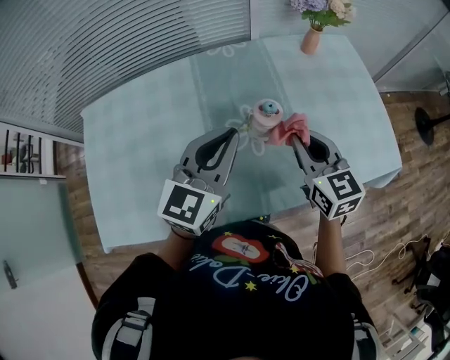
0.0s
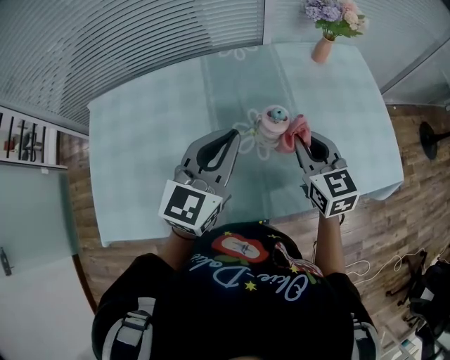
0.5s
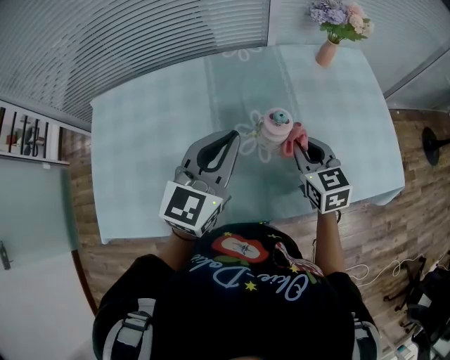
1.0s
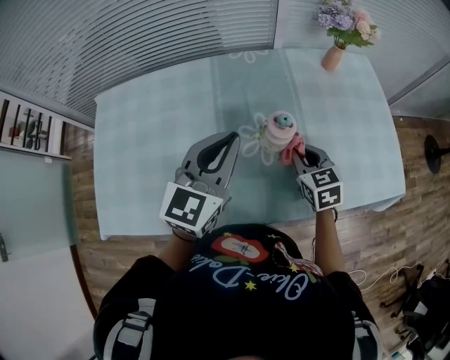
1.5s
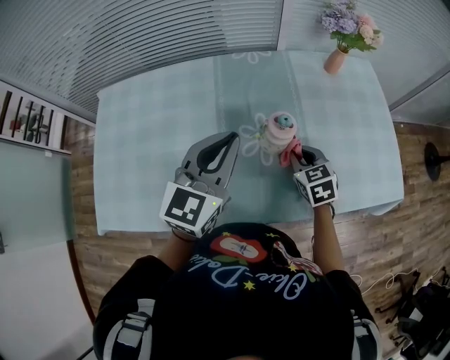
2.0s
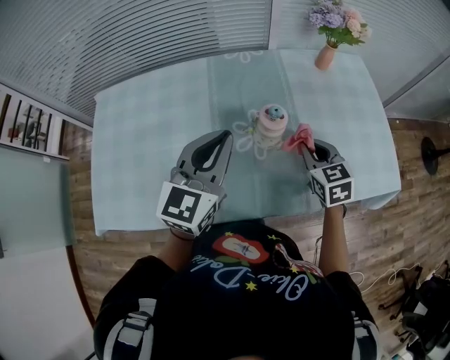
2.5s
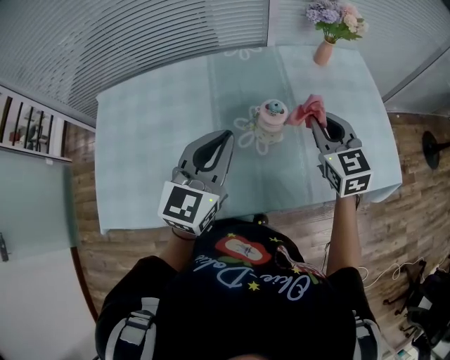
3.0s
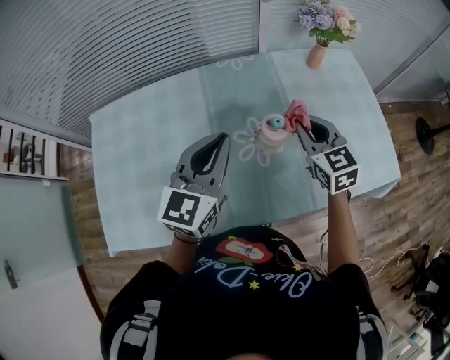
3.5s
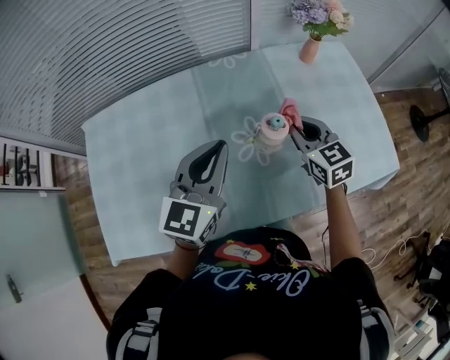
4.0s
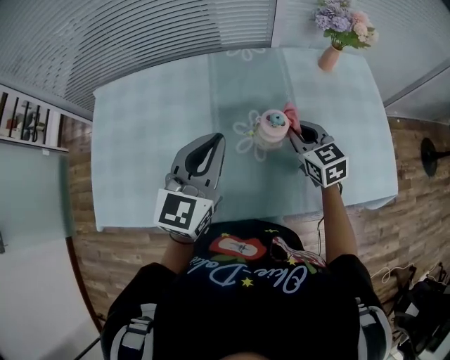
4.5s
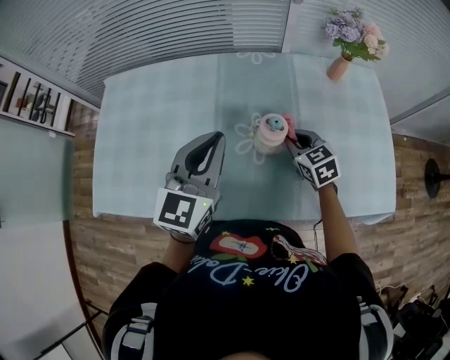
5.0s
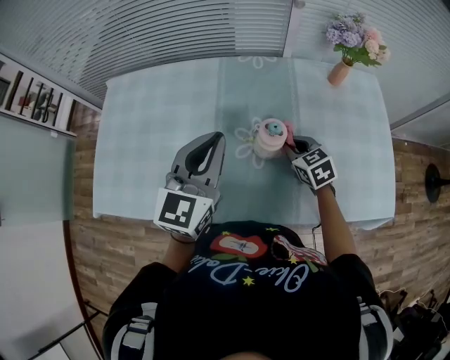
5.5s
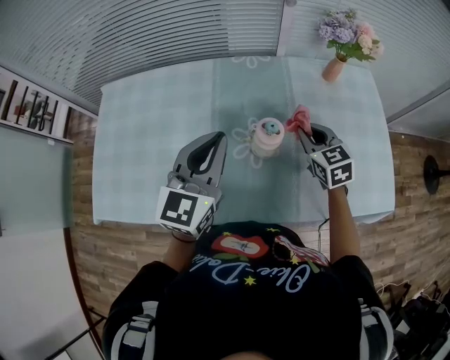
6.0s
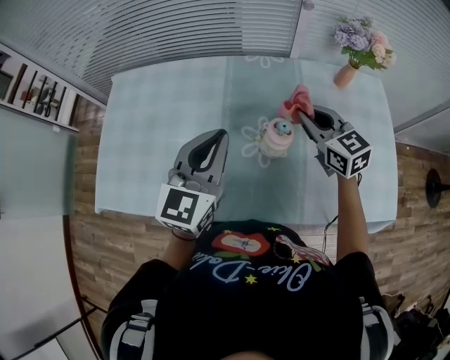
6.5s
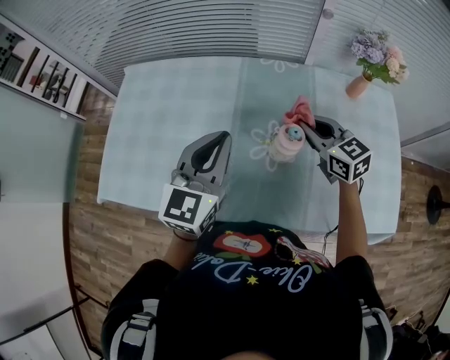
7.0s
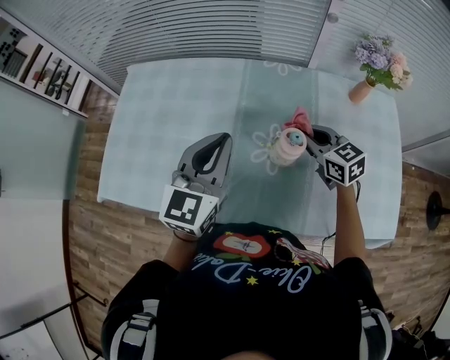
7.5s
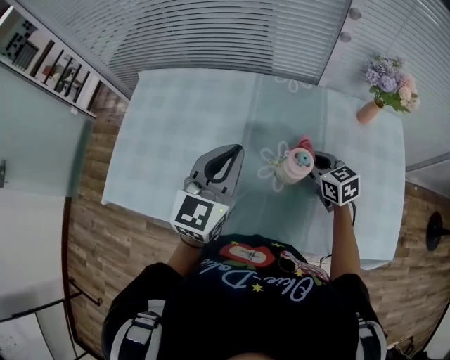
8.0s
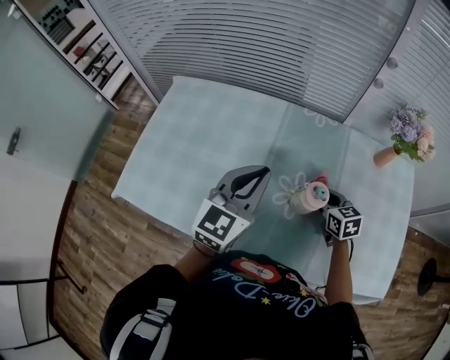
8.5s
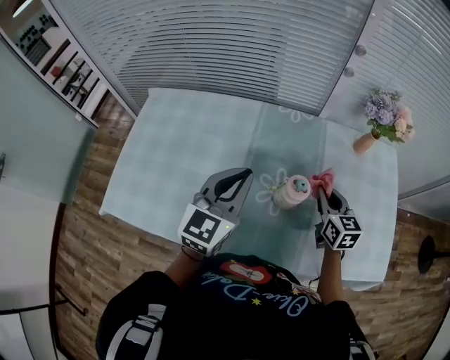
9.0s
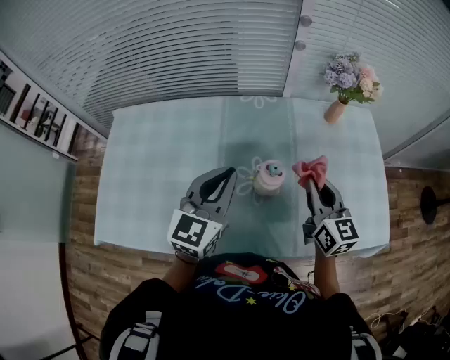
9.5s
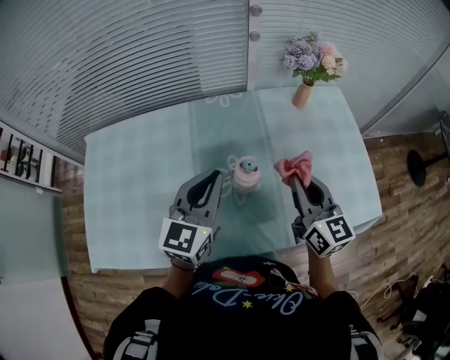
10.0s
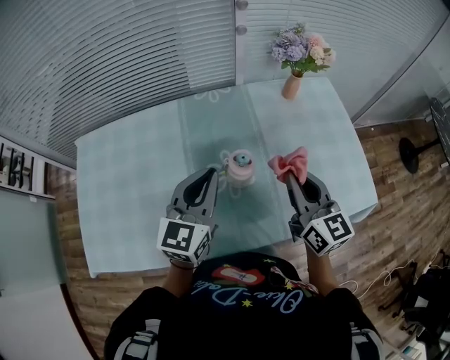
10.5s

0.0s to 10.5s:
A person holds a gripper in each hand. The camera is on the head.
0.0s to 2.0s: The right gripper goes approximately 15 cm downward, and changes its angle by about 30 degrees.
2.0s to 4.0s: The right gripper is displaced upward by some 10 cm.
4.0s to 6.5s: The right gripper goes downward and returns, approximately 10 cm each way, and changes its angle by approximately 20 degrees.
6.5s to 8.5s: The right gripper shifts roughly 15 cm downward.
8.5s to 10.5s: The right gripper is displaced upward, backward and to the right by approximately 20 cm, and tilts its fingers some 30 degrees upward, while the left gripper moves to the right, about 5 cm.

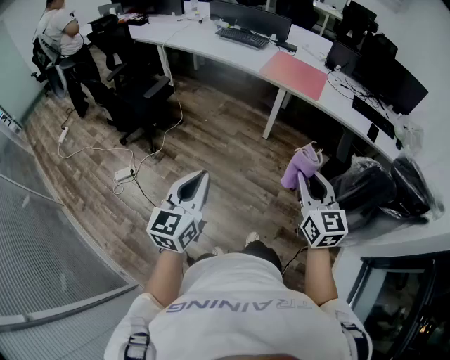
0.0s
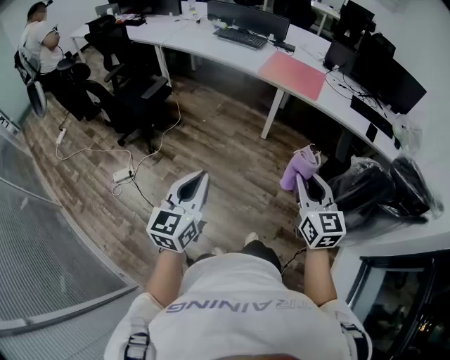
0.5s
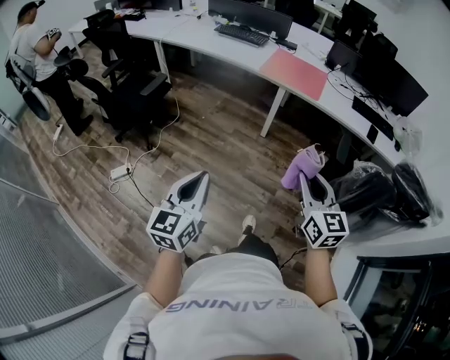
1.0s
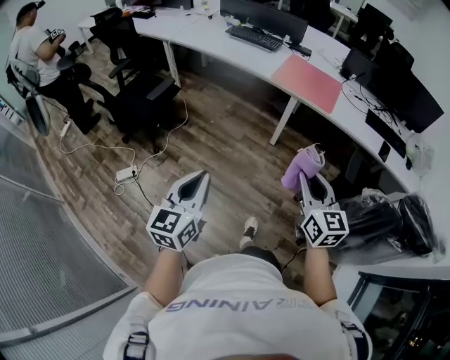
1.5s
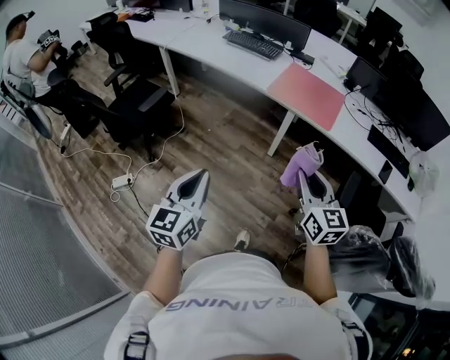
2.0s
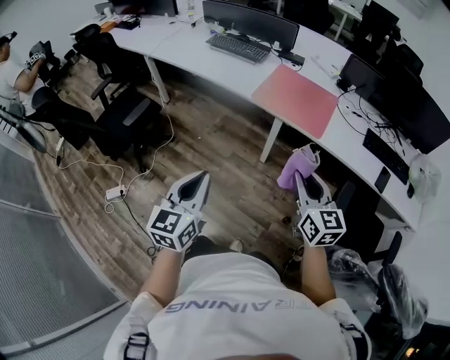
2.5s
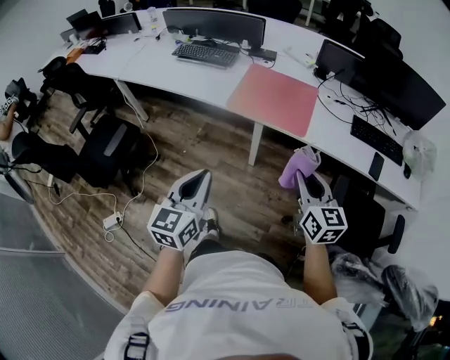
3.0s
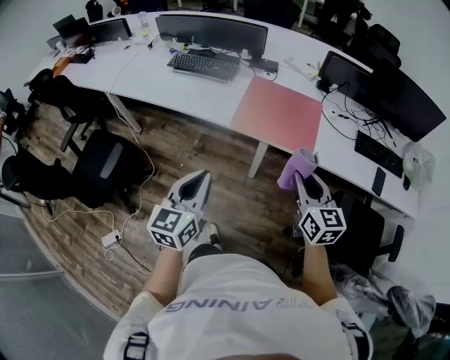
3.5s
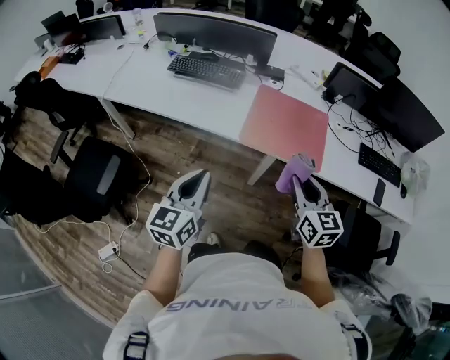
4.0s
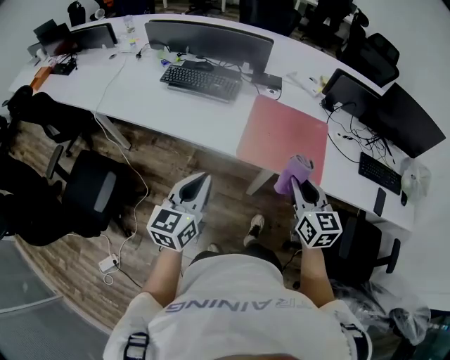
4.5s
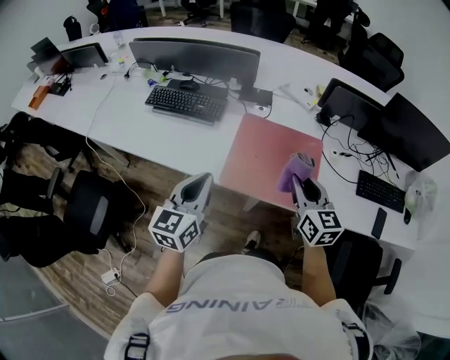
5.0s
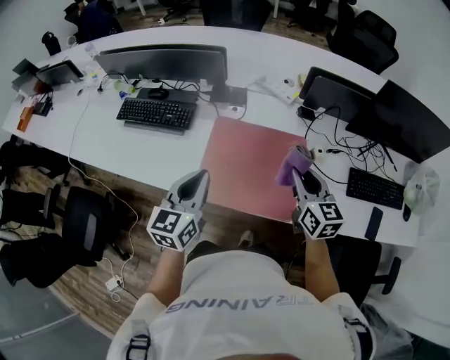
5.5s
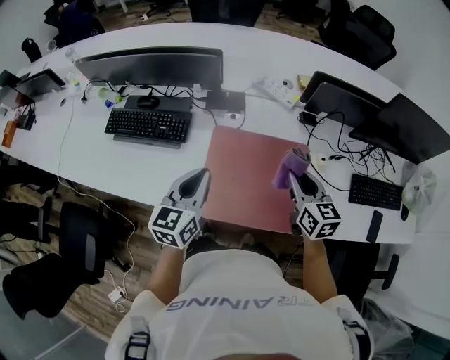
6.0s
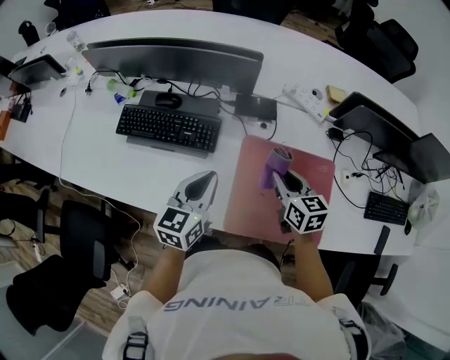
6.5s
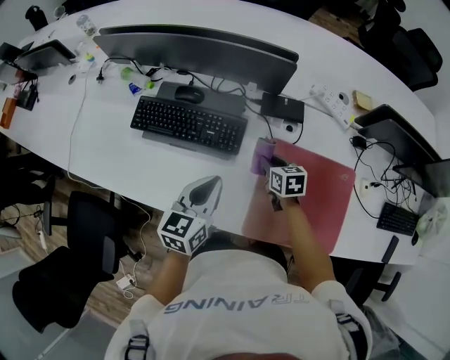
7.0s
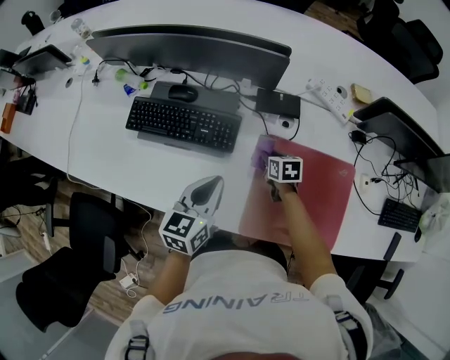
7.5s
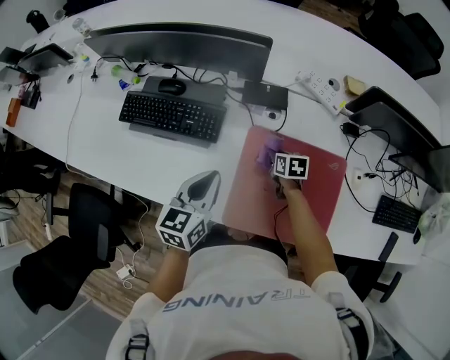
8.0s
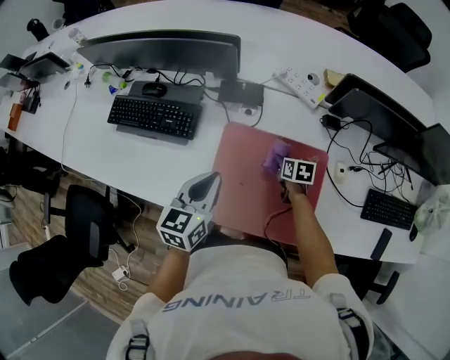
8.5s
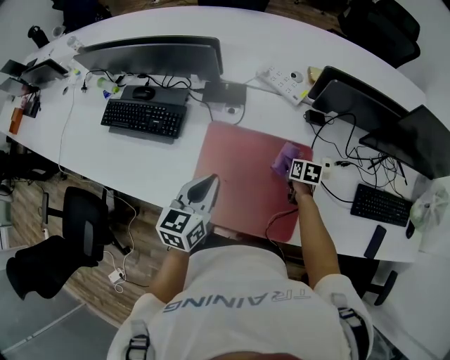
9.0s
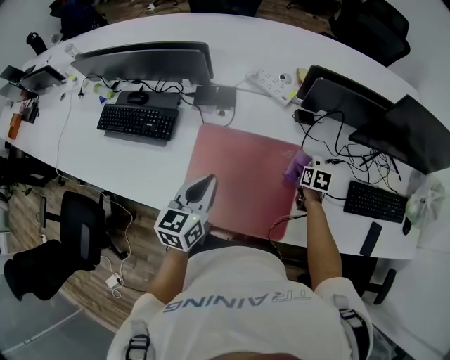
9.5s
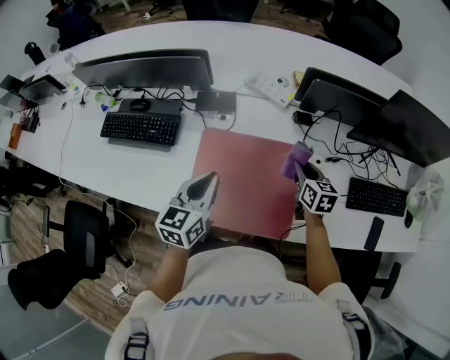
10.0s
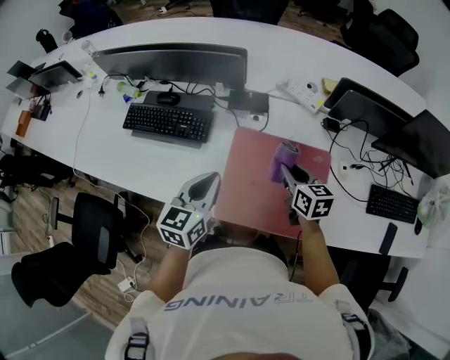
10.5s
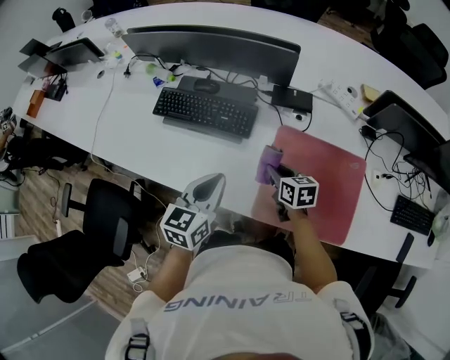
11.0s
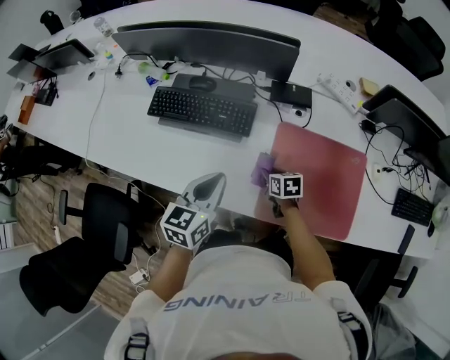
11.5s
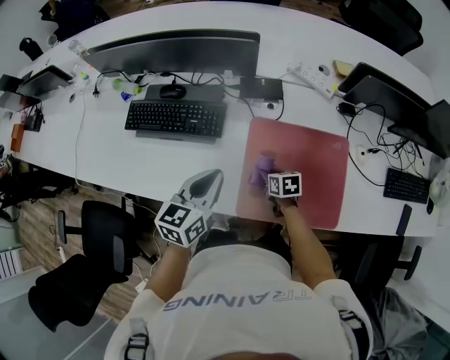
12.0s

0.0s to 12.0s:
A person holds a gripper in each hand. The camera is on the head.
0.0s to 2.0s: The two grippers go approximately 25 cm forward.
2.0s to 4.0s: Both grippers travel together forward, some 40 cm.
4.0s to 6.0s: Both grippers move forward, some 40 cm.
6.0s to 8.0s: The right gripper shifts roughly 35 cm downward, forward and to the left, and angles its fingers downward, by approximately 30 degrees, while the left gripper moves to the left, forward and downward, about 15 cm.
8.0s to 10.0s: The right gripper shifts roughly 30 cm to the right and upward, and changes its angle by approximately 30 degrees; the left gripper is displaced to the right by roughly 20 cm.
10.0s to 12.0s: The left gripper goes roughly 20 cm to the left, while the right gripper goes about 35 cm to the left and downward, and rotates roughly 30 degrees.

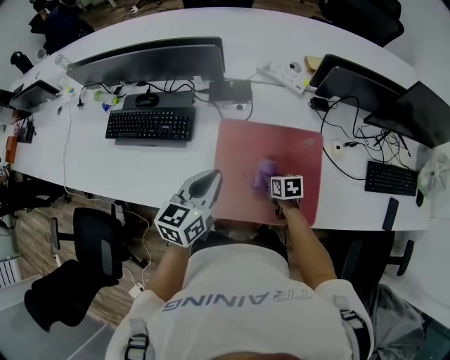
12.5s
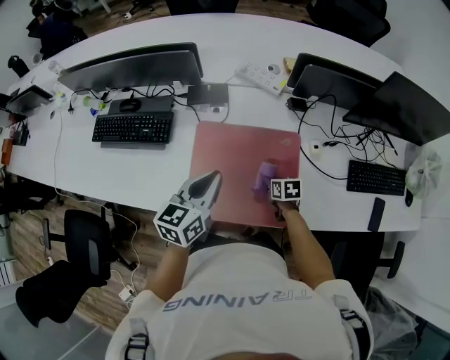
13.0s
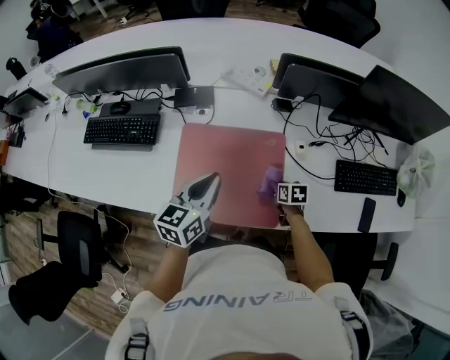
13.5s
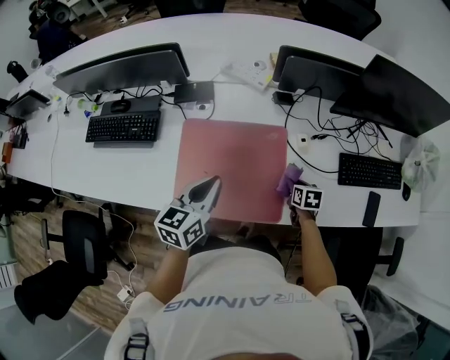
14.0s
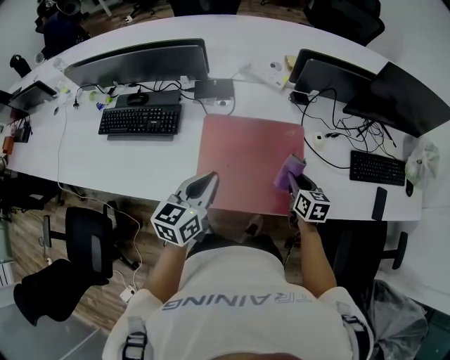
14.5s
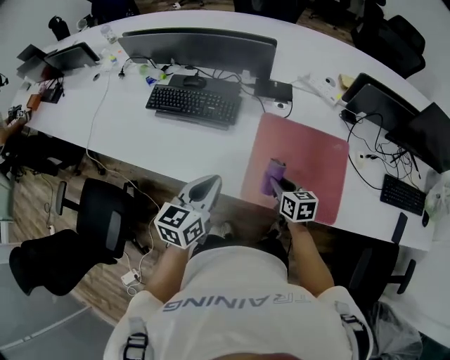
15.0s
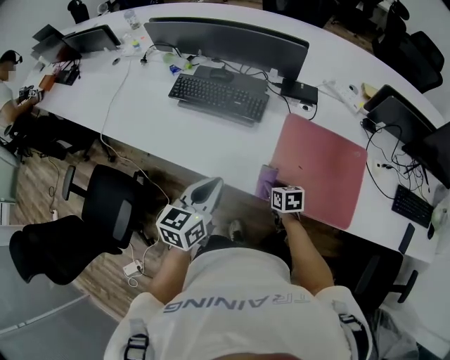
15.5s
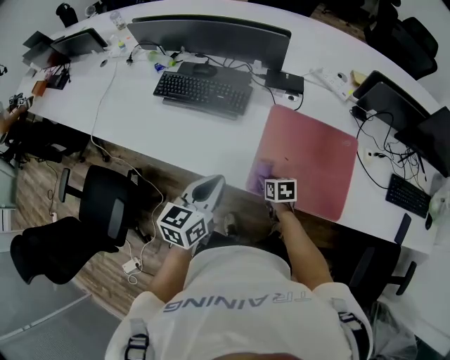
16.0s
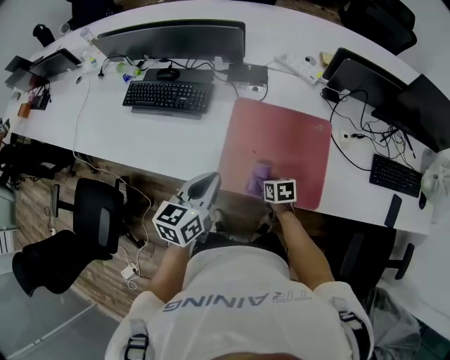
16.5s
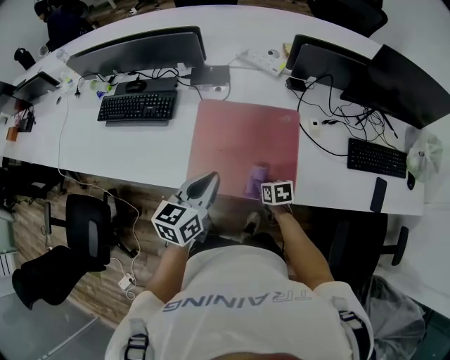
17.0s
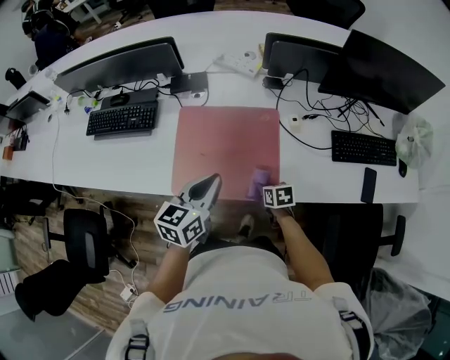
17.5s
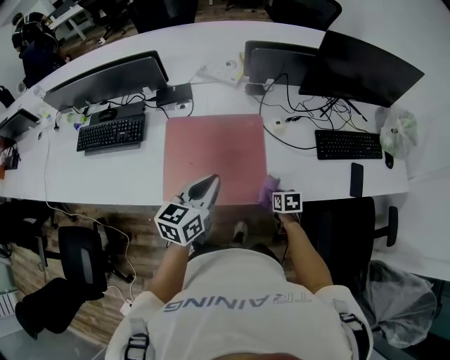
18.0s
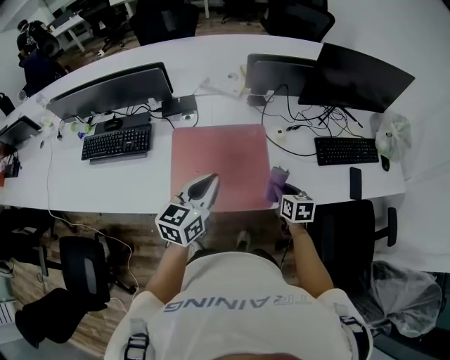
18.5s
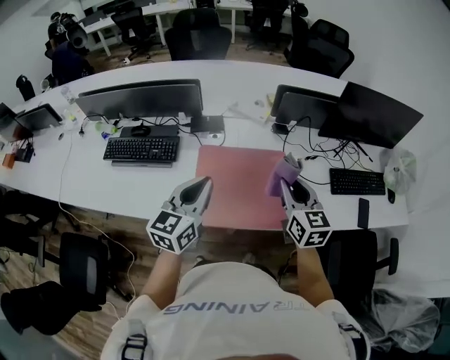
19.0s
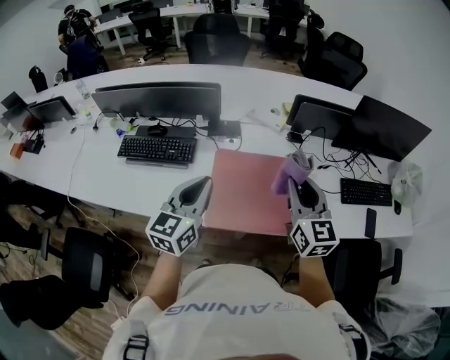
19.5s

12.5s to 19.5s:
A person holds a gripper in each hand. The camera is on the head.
12.5s to 14.5s: The right gripper travels to the right and upward by some 20 cm, and rotates some 30 degrees. The left gripper travels backward and to the right by approximately 10 cm.
14.5s to 16.0s: The right gripper heads to the left, covering approximately 30 cm, and turns by approximately 30 degrees, while the left gripper heads to the left, covering some 20 cm.
16.0s to 17.5s: The grippers both shift to the right by about 30 cm.
17.5s to 19.5s: The right gripper shifts approximately 40 cm upward, and tilts its fingers about 50 degrees upward. Meanwhile the left gripper moves to the left and upward, some 20 cm, and turns by approximately 20 degrees.
